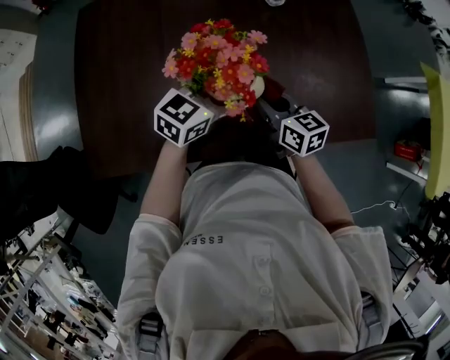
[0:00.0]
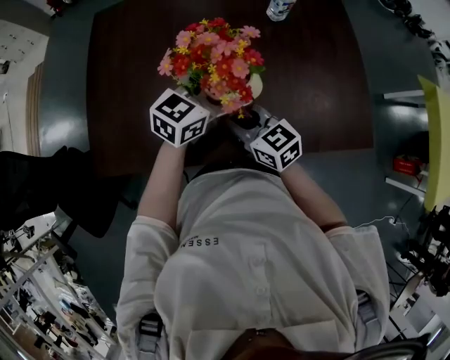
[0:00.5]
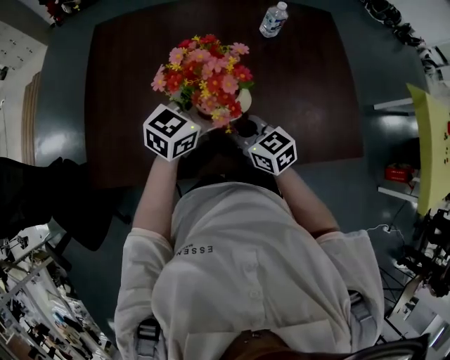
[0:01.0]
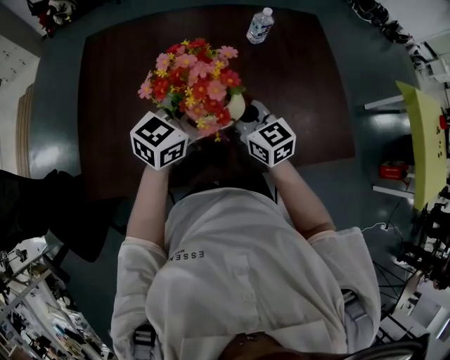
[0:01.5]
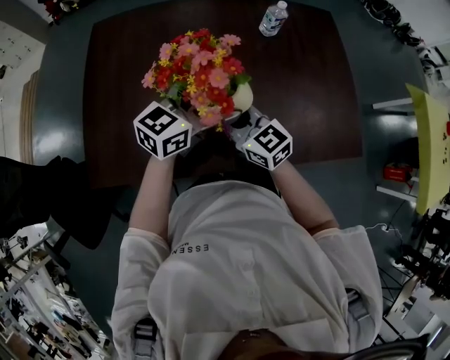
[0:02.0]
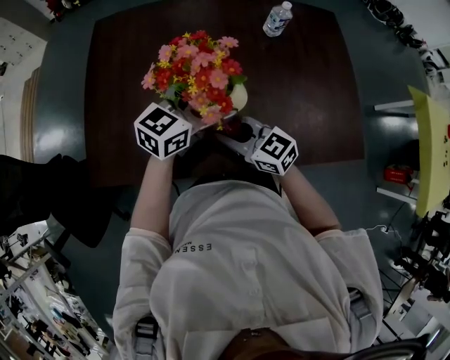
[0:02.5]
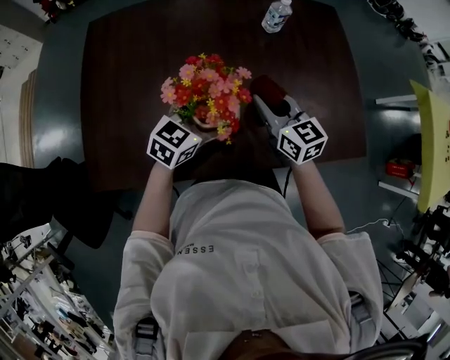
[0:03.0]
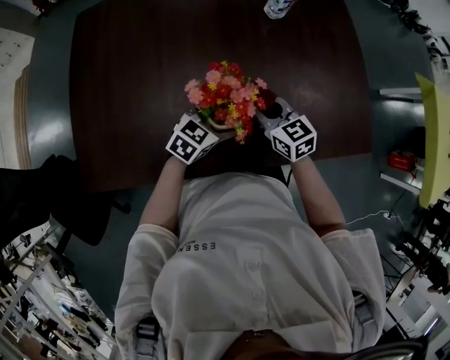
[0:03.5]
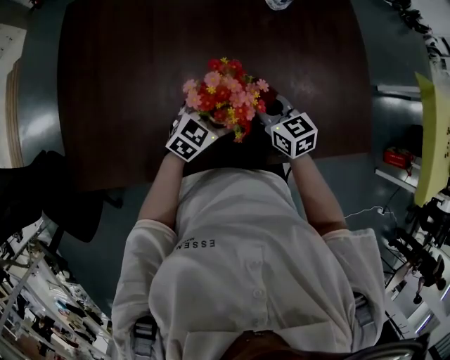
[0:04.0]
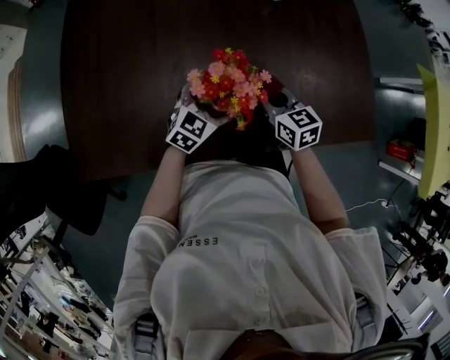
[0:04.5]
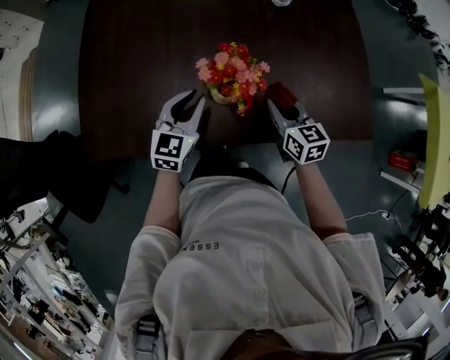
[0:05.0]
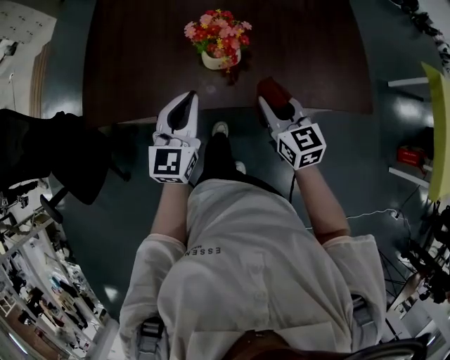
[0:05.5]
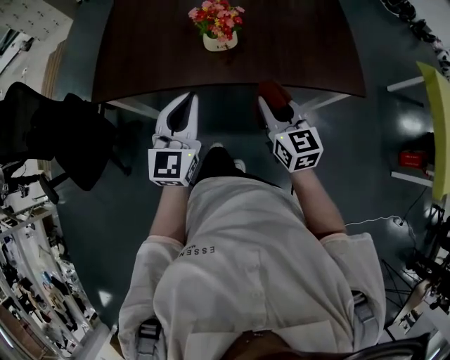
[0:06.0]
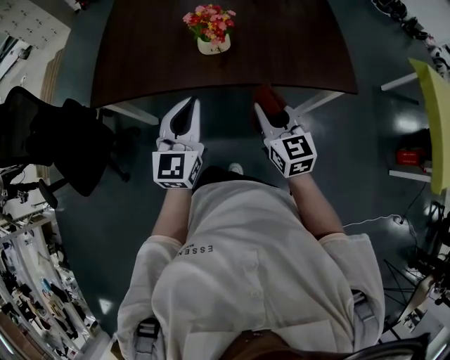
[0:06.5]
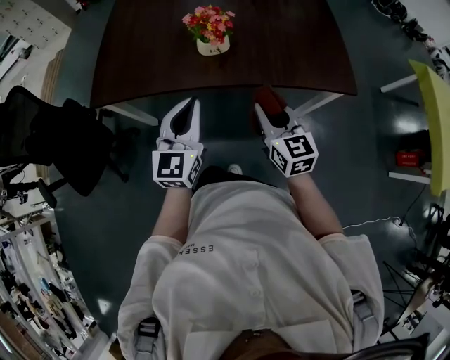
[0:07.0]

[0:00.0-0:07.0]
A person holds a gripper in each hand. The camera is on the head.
0:00.0 to 0:02.0: The left gripper moves upward, roughly 10 cm. The right gripper swings left and right, about 10 cm each way, with 2 reversals, and rotates some 30 degrees.
0:02.0 to 0:03.5: The left gripper is displaced downward by about 20 cm, and swivels some 30 degrees; the right gripper travels downward and to the right by approximately 15 cm.
0:03.5 to 0:05.0: The left gripper heads to the left and upward, covering roughly 10 cm, swivels some 30 degrees, and closes up. Meanwhile the right gripper moves backward and to the right, roughly 10 cm.
0:05.0 to 0:07.0: The right gripper is displaced backward by roughly 25 cm; the left gripper is displaced backward and upward by roughly 30 cm, and changes its angle by roughly 20 degrees.

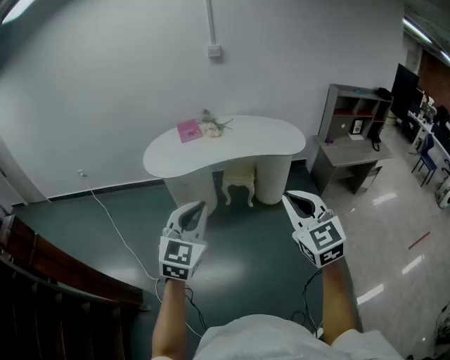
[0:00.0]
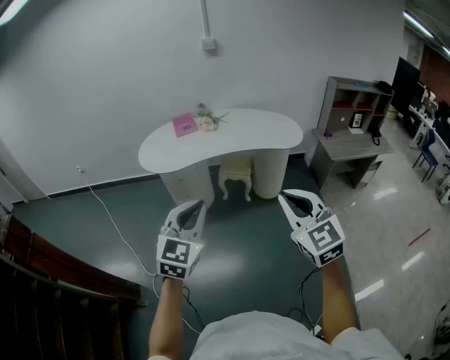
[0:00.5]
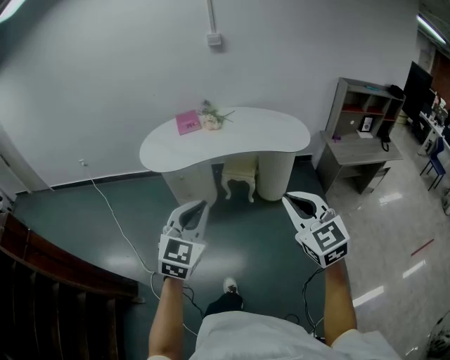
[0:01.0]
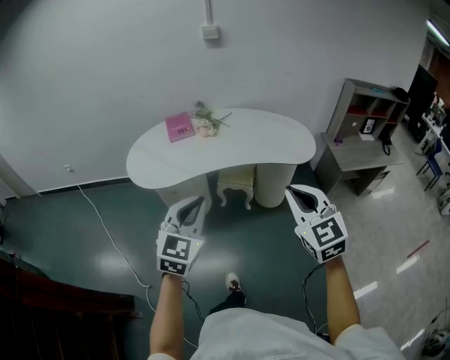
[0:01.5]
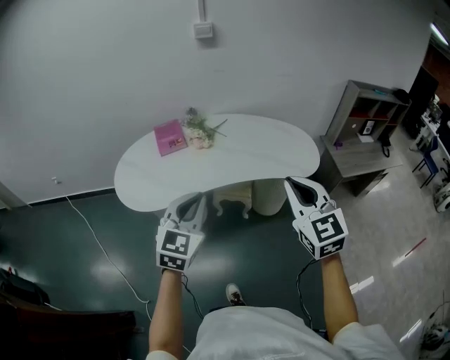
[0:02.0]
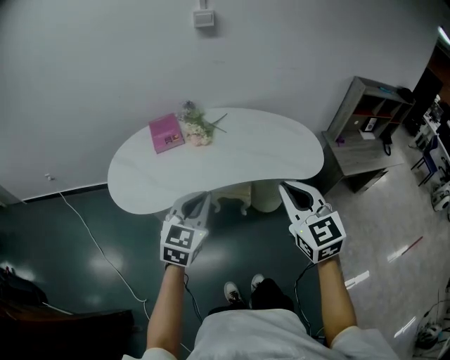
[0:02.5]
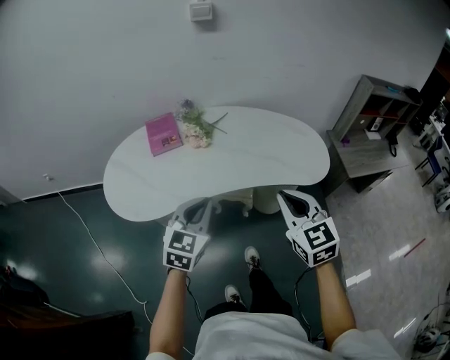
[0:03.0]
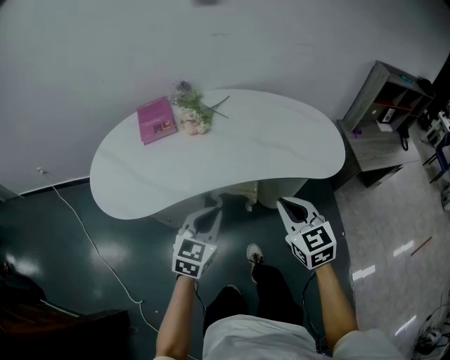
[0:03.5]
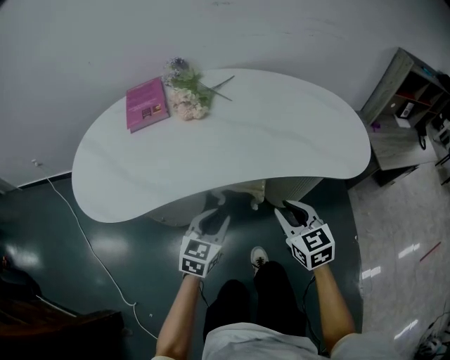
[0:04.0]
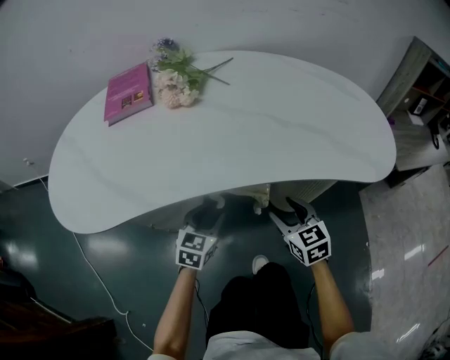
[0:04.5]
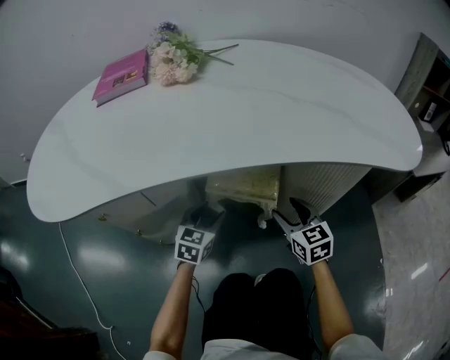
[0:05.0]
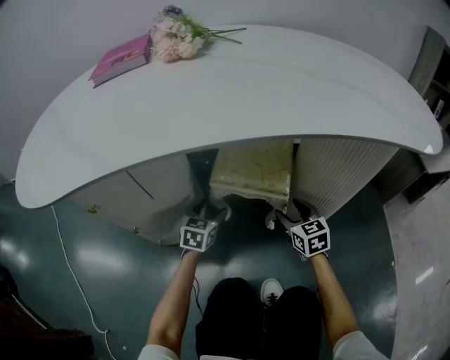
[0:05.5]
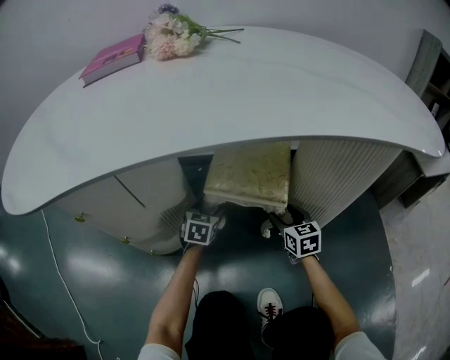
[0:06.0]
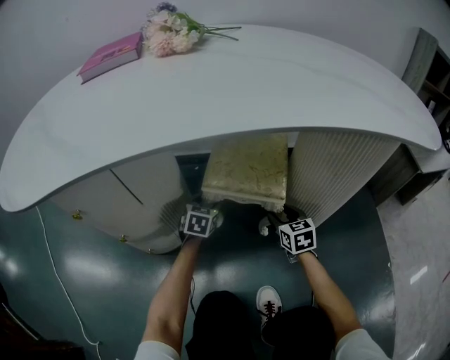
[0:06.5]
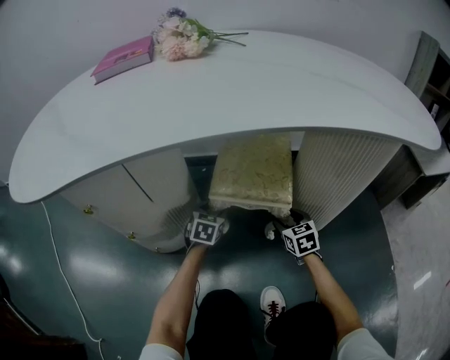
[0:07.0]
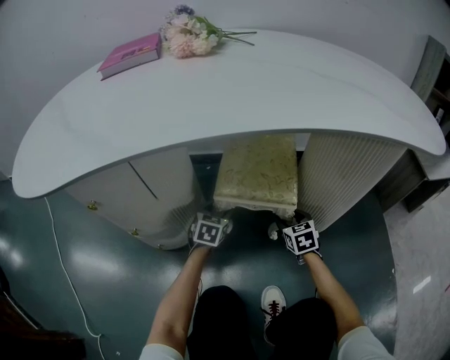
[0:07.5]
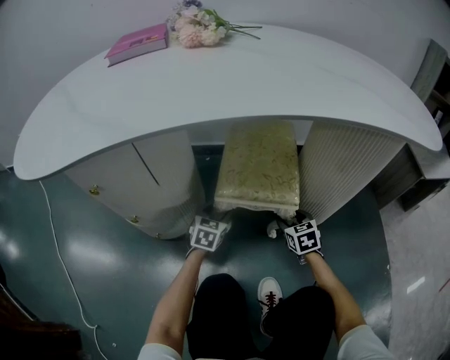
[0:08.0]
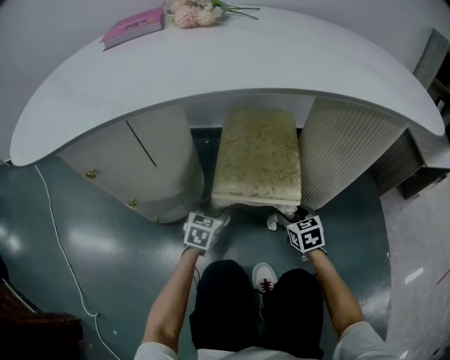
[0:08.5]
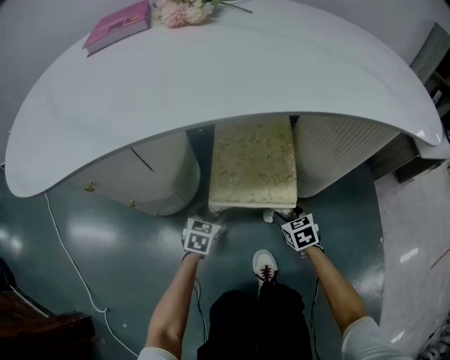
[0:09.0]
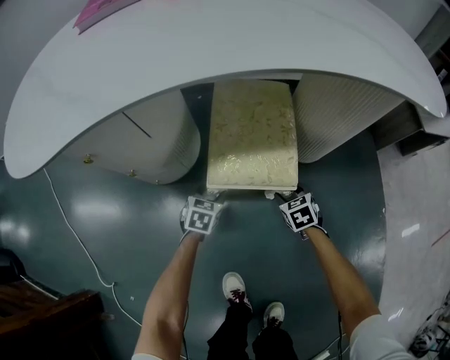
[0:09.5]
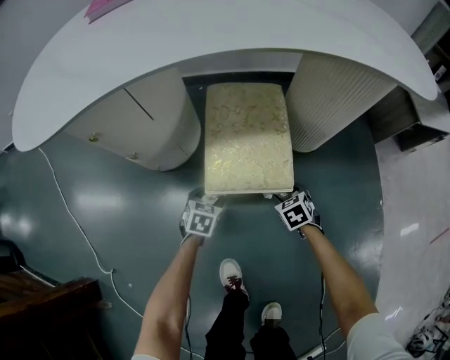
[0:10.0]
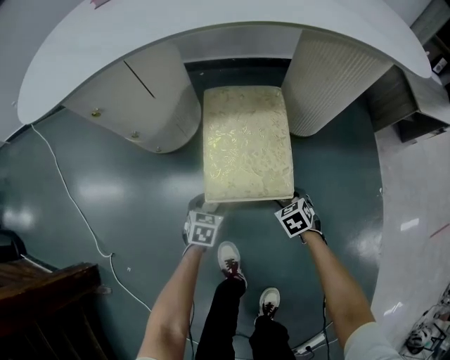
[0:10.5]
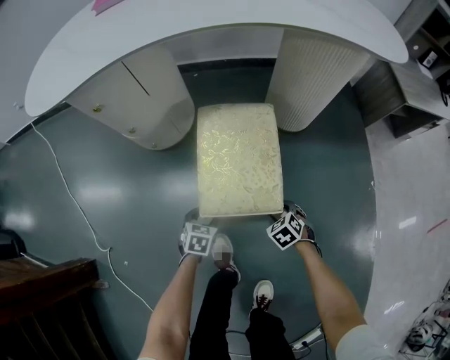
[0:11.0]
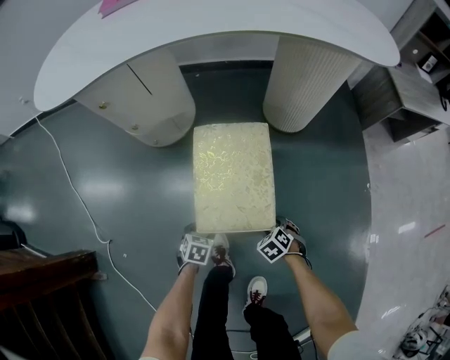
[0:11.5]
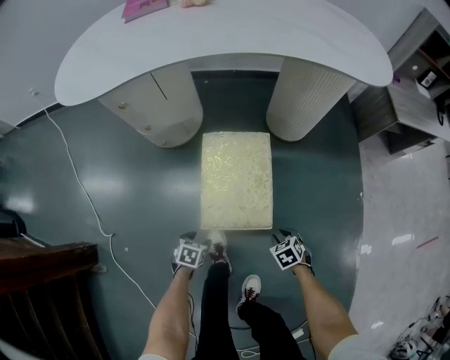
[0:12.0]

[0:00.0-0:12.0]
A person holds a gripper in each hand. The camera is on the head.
0:00.0 to 0:02.0: The grippers both shift forward by about 40 cm.
0:02.0 to 0:04.0: The grippers both shift downward and forward by some 40 cm. The right gripper changes its angle by some 20 degrees. Meanwhile the left gripper swivels roughly 20 degrees.
0:04.0 to 0:06.0: Both grippers travel together downward and forward, roughly 50 cm. The right gripper opens up; the left gripper opens.
0:06.0 to 0:08.0: The right gripper shifts by some 5 cm, while the left gripper is displaced backward by about 5 cm.
0:08.0 to 0:10.0: The grippers both shift backward by roughly 20 cm. The right gripper turns by about 20 degrees.
0:10.0 to 0:12.0: The left gripper ends up about 30 cm from where it was, and turns by about 20 degrees. The right gripper ends up approximately 30 cm from where it was, and closes.

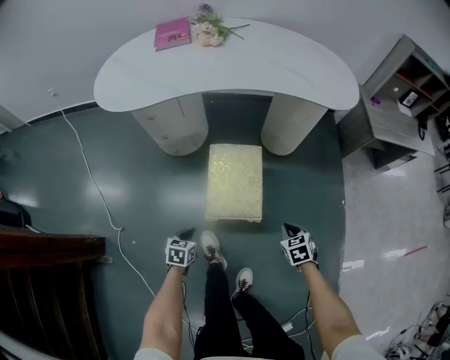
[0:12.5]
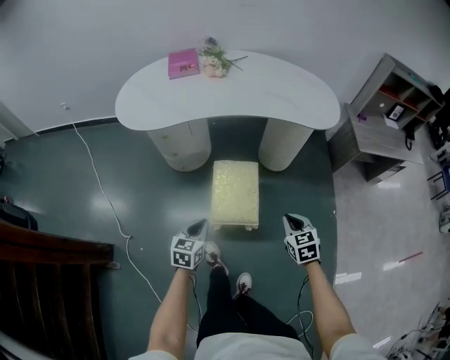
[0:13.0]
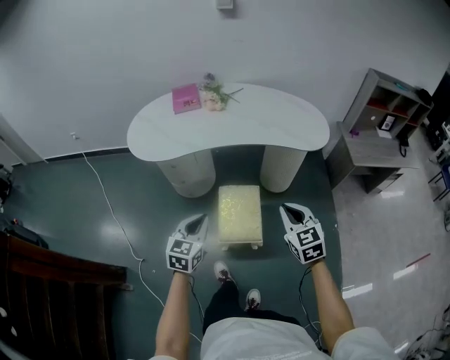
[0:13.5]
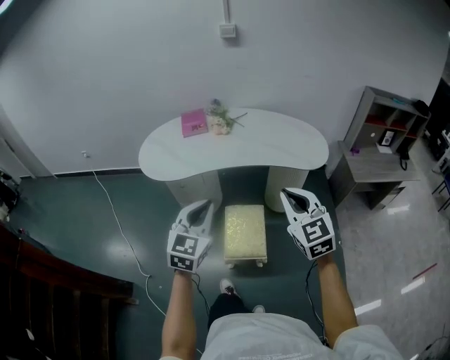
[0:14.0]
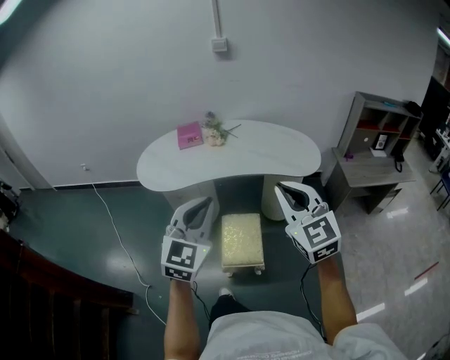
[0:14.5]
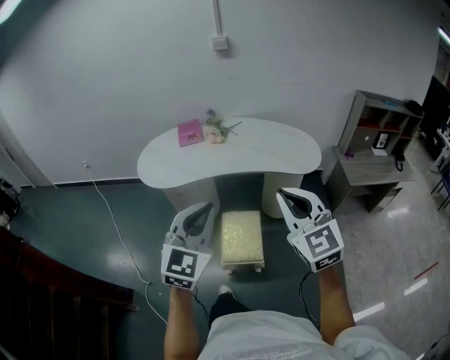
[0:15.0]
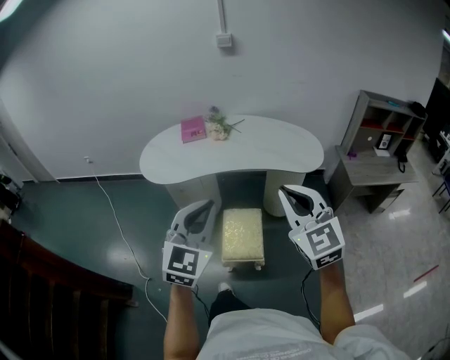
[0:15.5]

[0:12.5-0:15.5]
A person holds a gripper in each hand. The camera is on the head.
0:12.5 to 0:14.0: Both grippers travel together upward, some 60 cm. The right gripper points its fingers some 50 degrees further upward; the left gripper points its fingers approximately 40 degrees further upward.
0:14.0 to 0:15.5: Both grippers travel together upward and backward, some 10 cm.

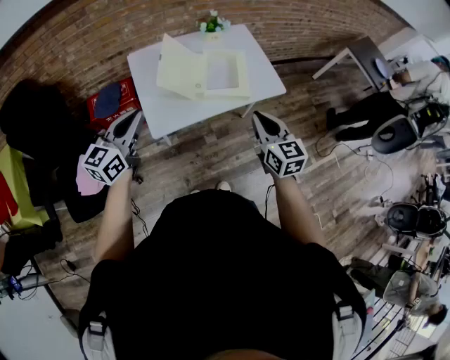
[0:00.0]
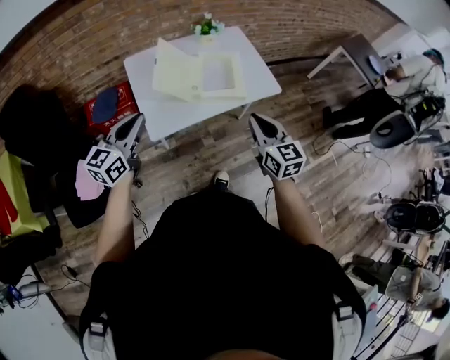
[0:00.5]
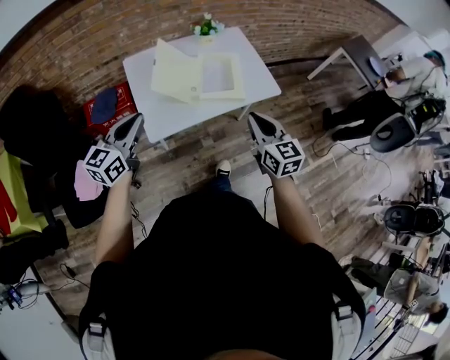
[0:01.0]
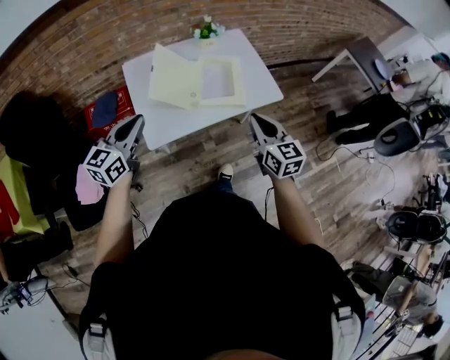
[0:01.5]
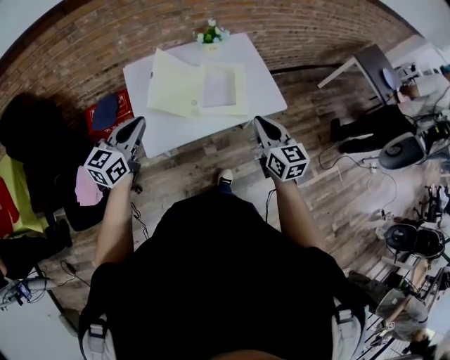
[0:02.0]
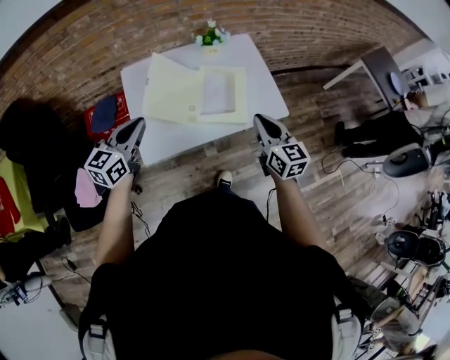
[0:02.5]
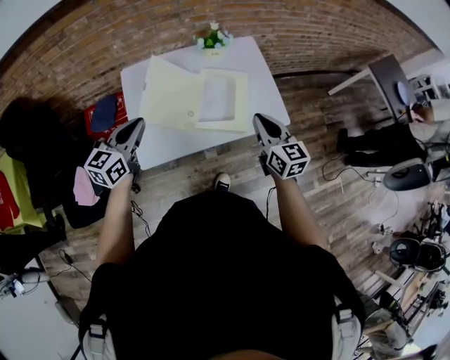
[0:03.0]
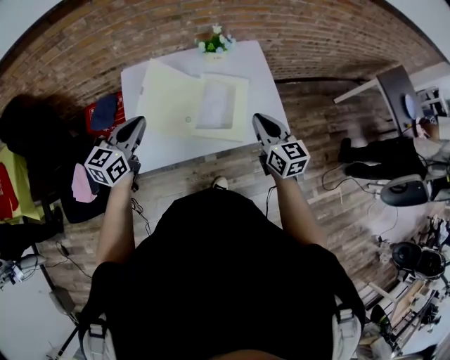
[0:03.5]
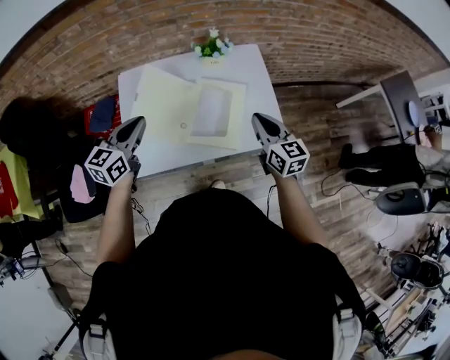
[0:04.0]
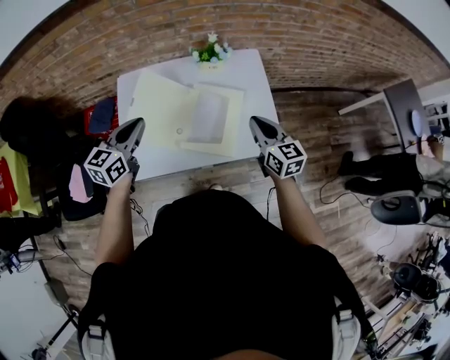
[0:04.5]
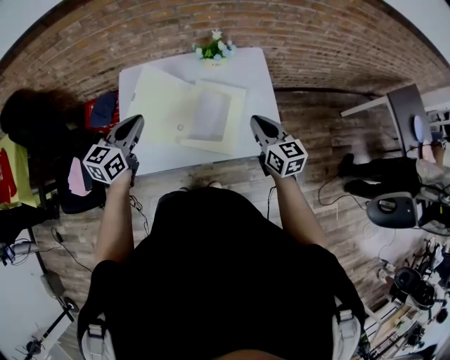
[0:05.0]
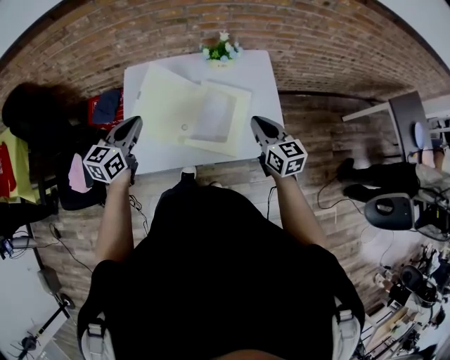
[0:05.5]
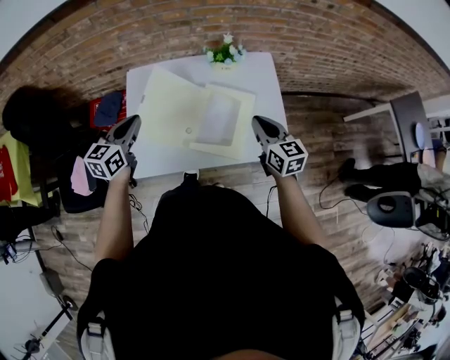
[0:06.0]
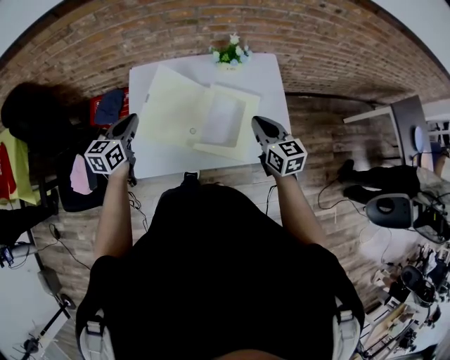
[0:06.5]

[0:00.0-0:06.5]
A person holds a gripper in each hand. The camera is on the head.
0:00.0 to 0:02.0: Both grippers travel together forward, approximately 10 cm.
0:02.0 to 0:04.5: The two grippers go approximately 25 cm forward and to the right.
0:04.5 to 0:06.5: The left gripper moves to the left and downward, approximately 10 cm, while the right gripper shifts roughly 5 cm to the left.
